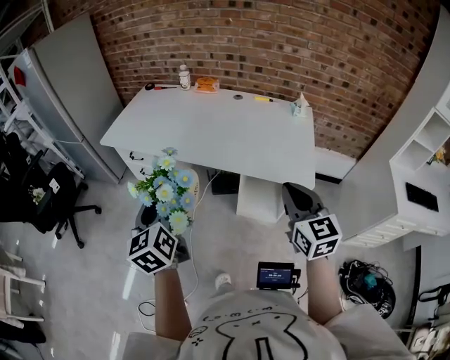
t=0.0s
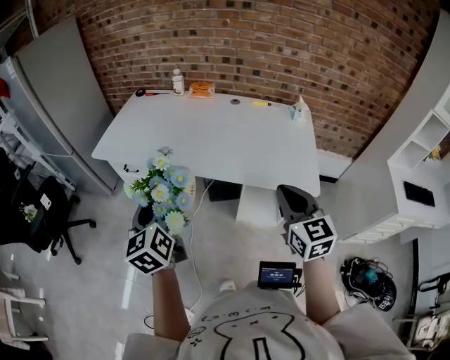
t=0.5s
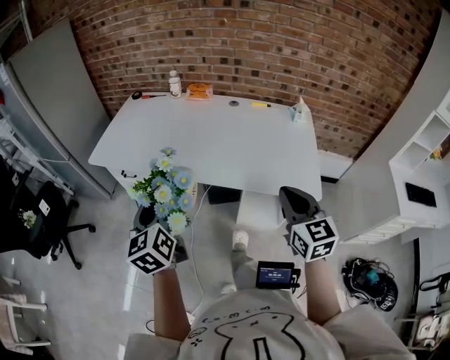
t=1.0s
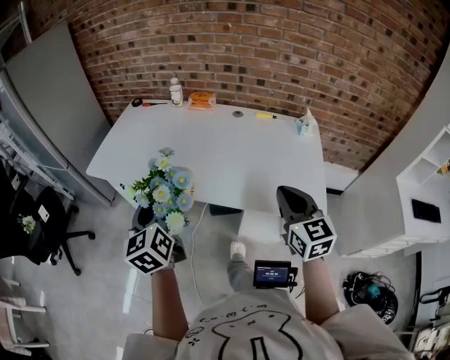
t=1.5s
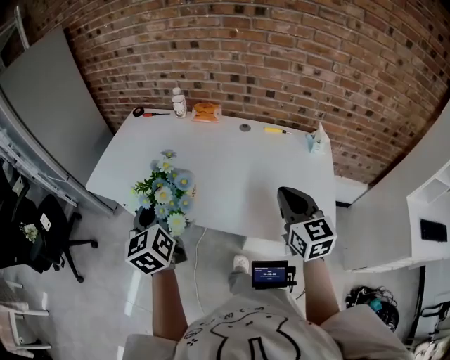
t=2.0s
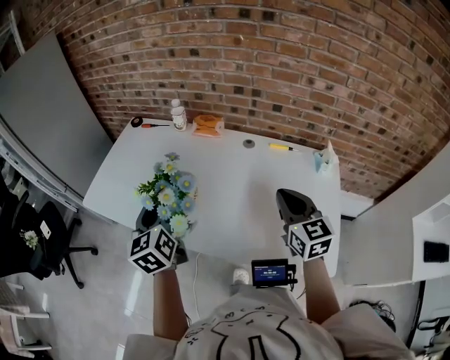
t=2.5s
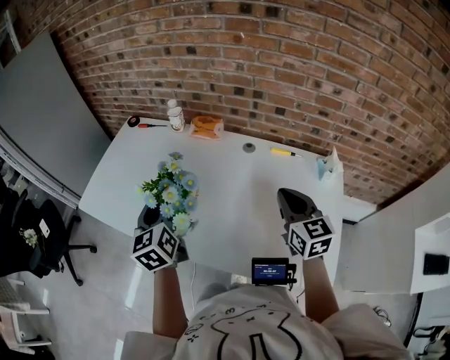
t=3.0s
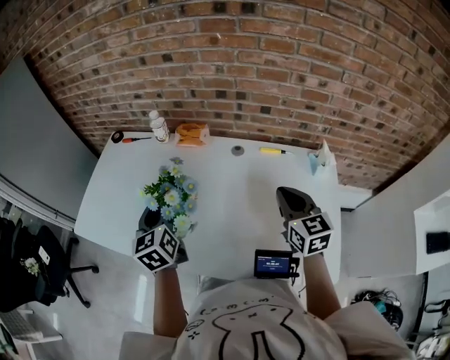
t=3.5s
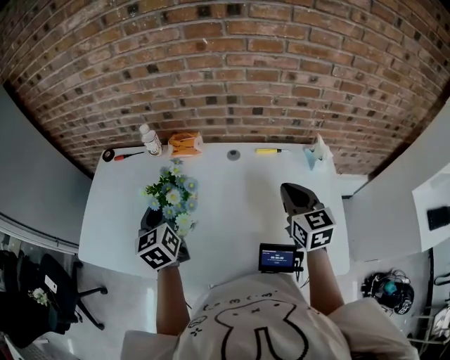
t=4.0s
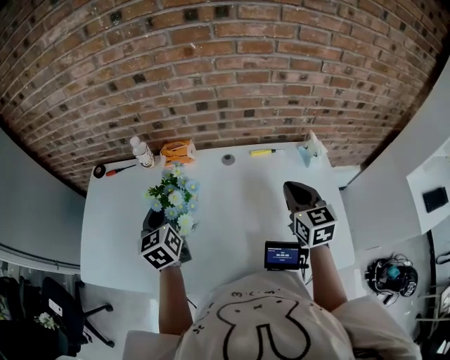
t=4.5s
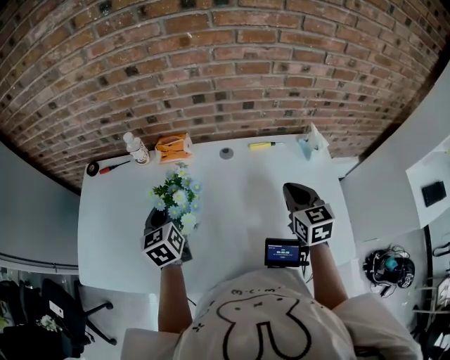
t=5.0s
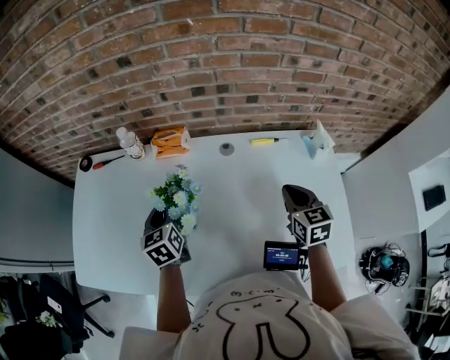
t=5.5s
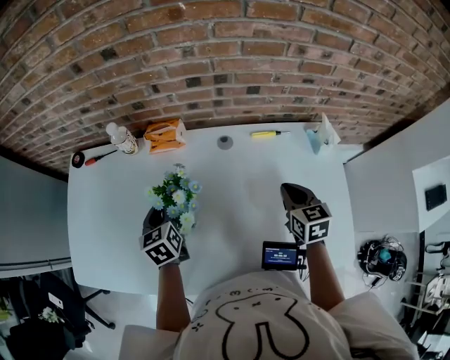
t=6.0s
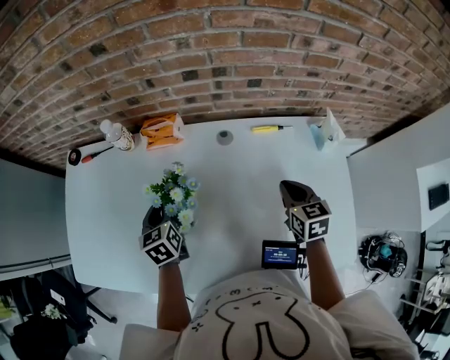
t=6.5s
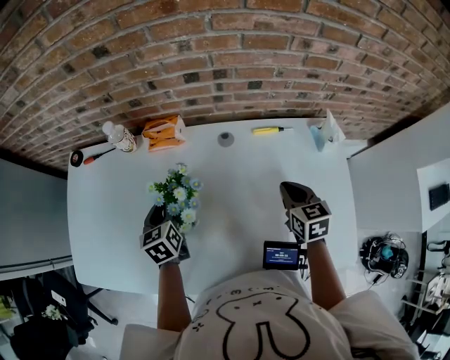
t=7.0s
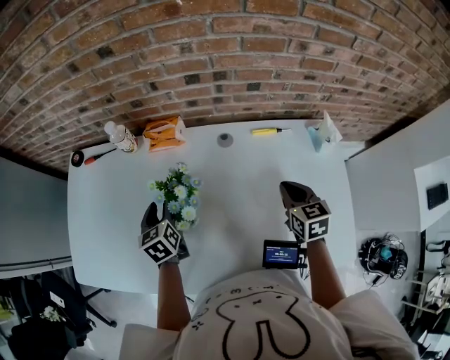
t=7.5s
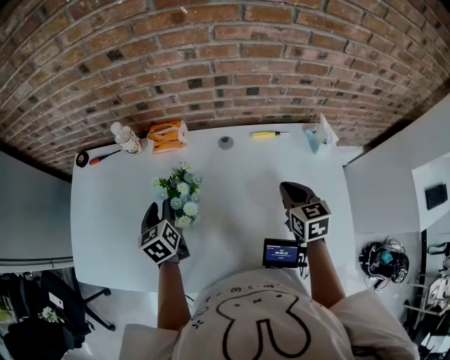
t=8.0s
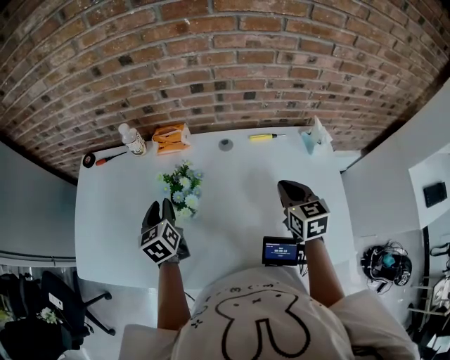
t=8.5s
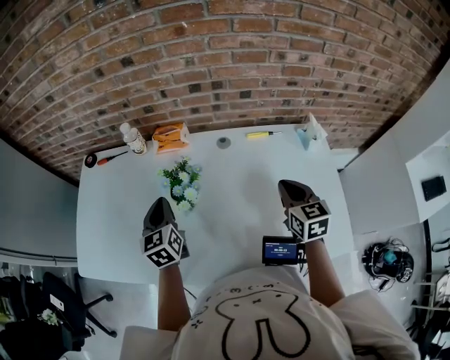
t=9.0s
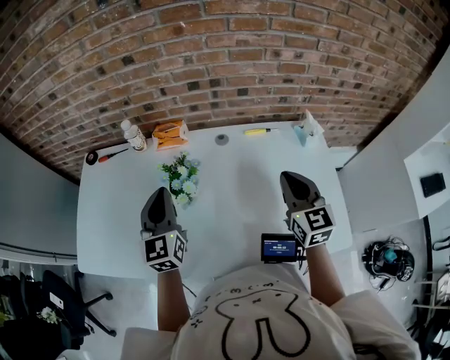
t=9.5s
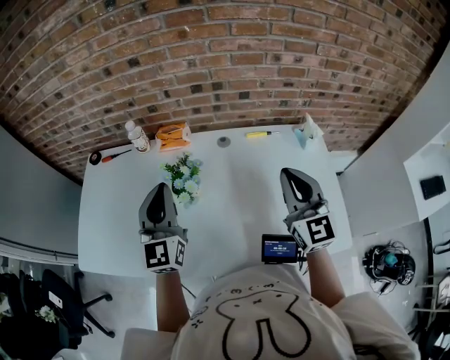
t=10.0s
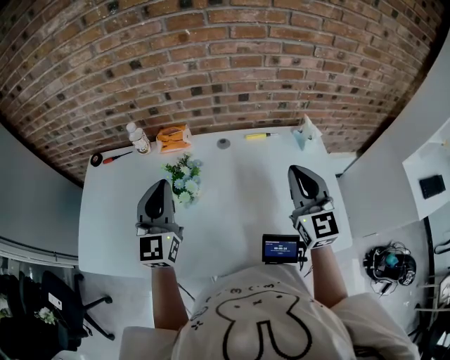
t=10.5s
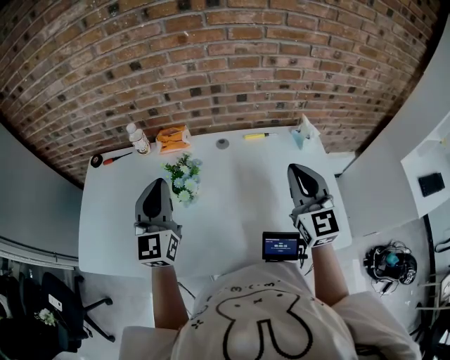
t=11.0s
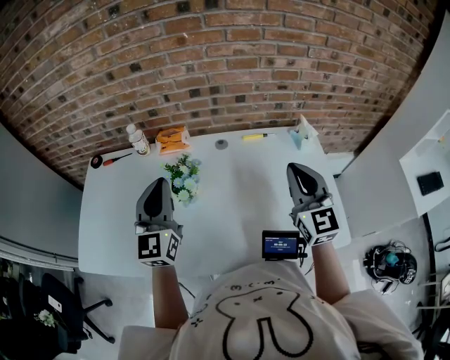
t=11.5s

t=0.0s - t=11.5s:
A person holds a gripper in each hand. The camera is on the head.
t=0.0s - t=2.0s: The two grippers go about 30 cm forward.
t=2.0s - t=4.0s: The two grippers go some 25 cm forward.
t=4.0s - t=6.0s: Both grippers move downward and forward, about 15 cm.
t=6.0s - t=7.5s: The left gripper opens its fingers.
t=7.5s - t=9.5s: Both grippers move upward and backward, some 15 cm. The right gripper changes its angle by some 30 degrees. The left gripper tilts its fingers about 30 degrees upward, and closes its fingers.
t=9.5s - t=11.5s: The grippers both shift upward by roughly 5 cm.

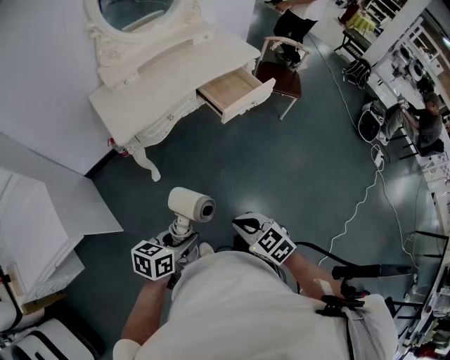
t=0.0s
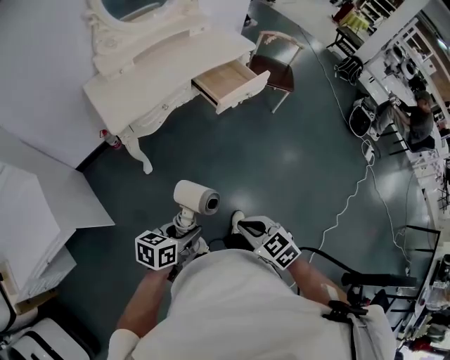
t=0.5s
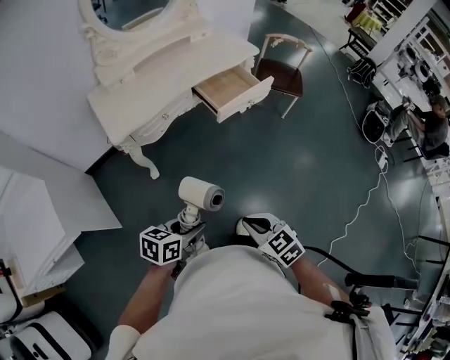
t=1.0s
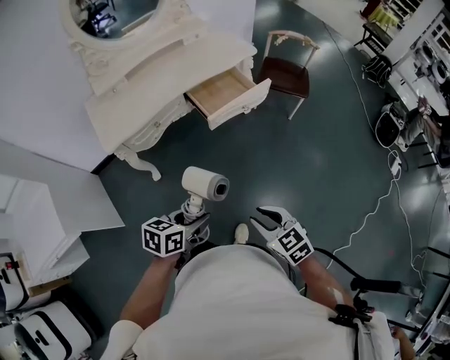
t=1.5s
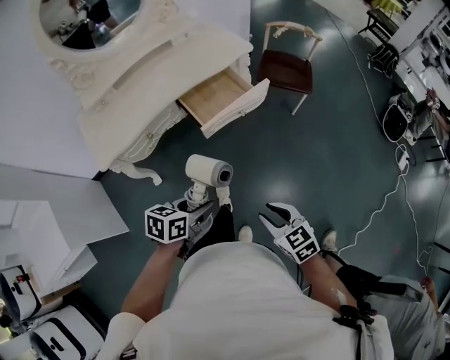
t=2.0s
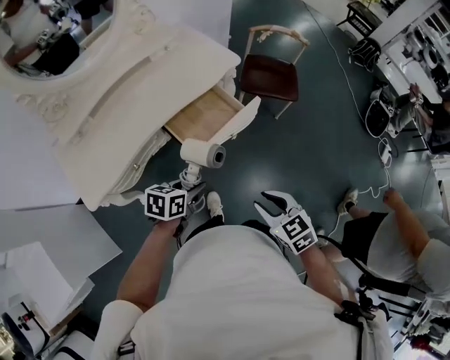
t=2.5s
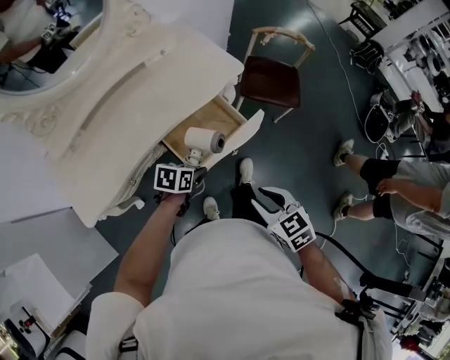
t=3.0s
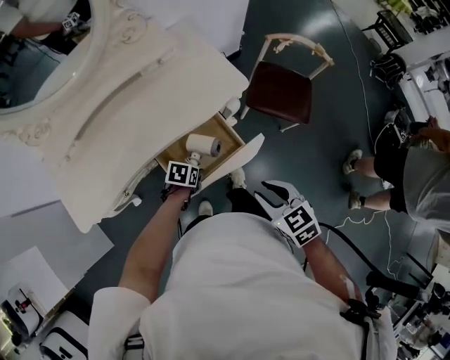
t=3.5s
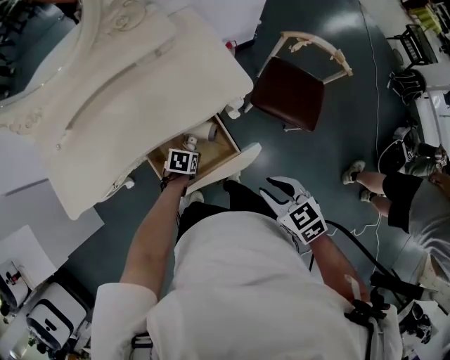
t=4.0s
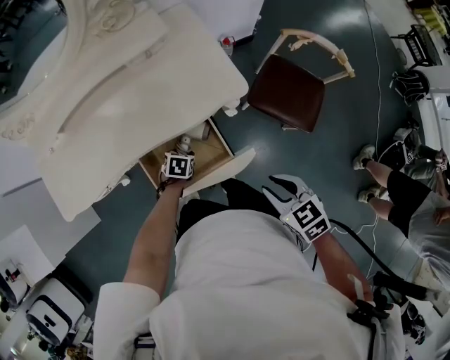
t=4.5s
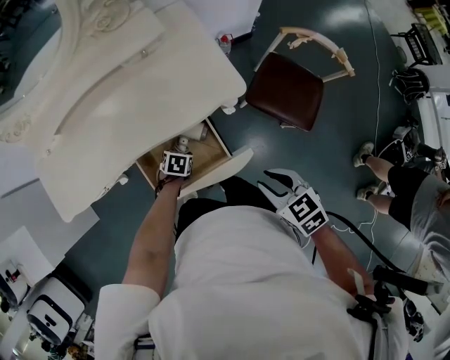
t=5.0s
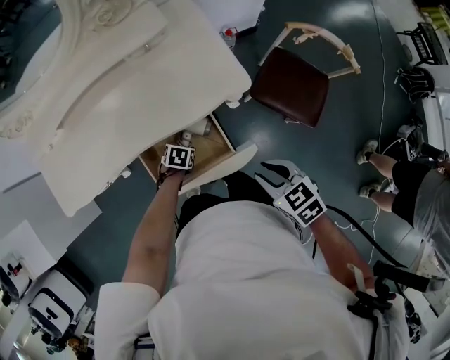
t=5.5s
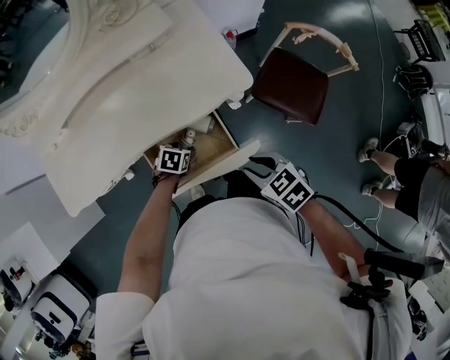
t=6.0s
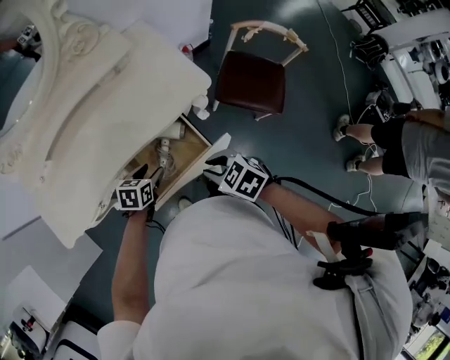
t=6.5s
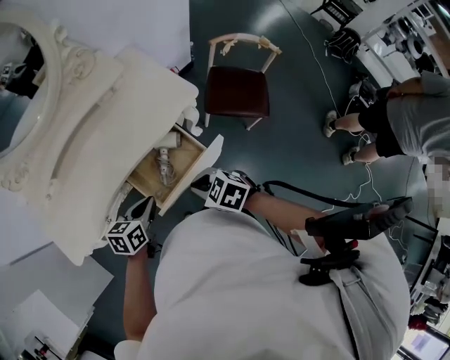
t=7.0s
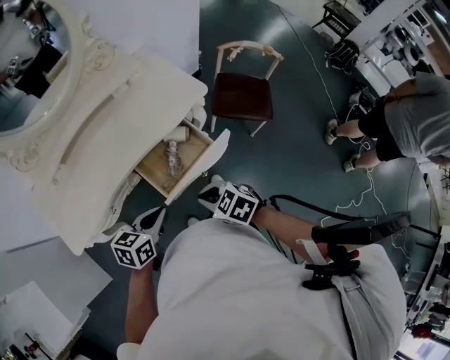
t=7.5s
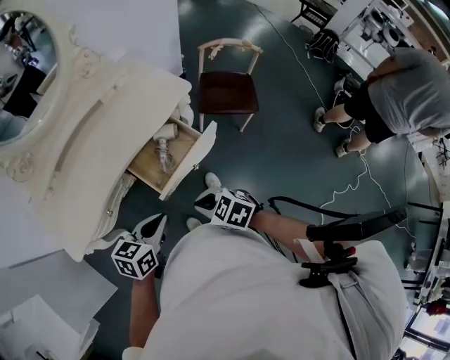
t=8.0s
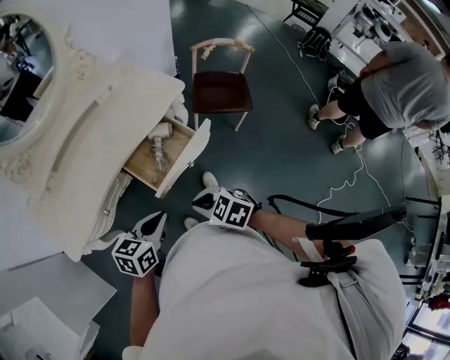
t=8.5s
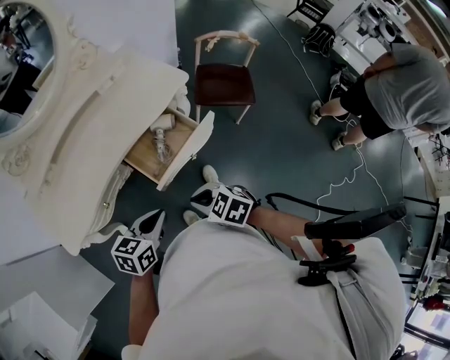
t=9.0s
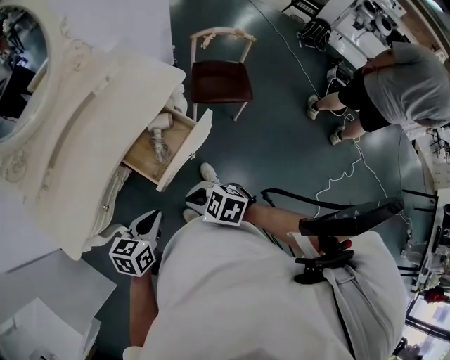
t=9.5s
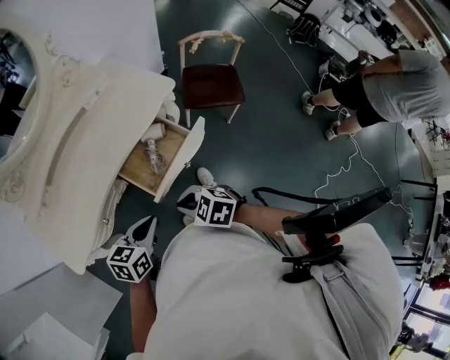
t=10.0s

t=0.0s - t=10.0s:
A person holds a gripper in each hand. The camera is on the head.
t=0.0s - t=2.0s: The right gripper travels to the right and forward by some 35 cm, and opens its fingers, while the left gripper heads forward and to the right, covering some 35 cm.
t=2.0s - t=4.0s: The two grippers travel together, forward, roughly 60 cm. The left gripper goes approximately 25 cm downward, and tilts its fingers about 30 degrees downward.
t=4.0s - t=6.0s: The right gripper changes place by approximately 10 cm.
t=6.0s - t=8.0s: The right gripper moves backward and to the left, about 35 cm, and closes up; the left gripper goes approximately 40 cm backward and upward, angles its fingers upward, by approximately 40 degrees, and closes up.
t=8.0s - t=10.0s: There are only small adjustments of the grippers.

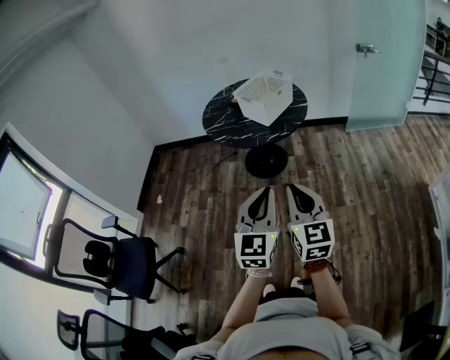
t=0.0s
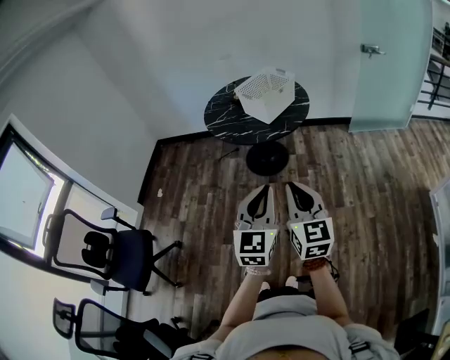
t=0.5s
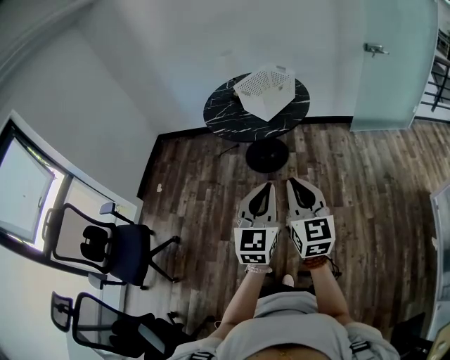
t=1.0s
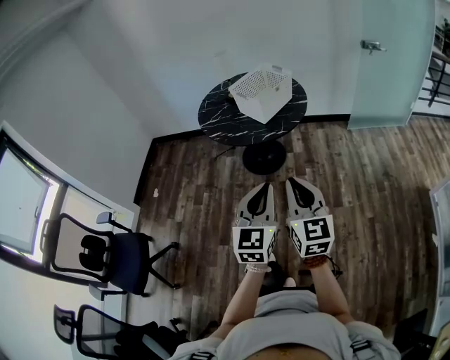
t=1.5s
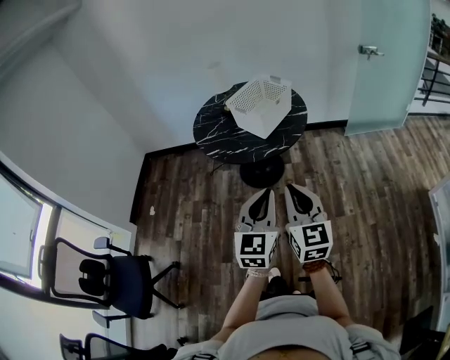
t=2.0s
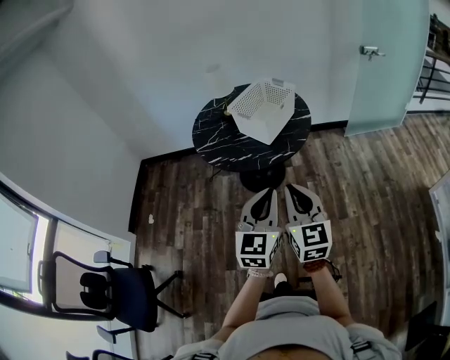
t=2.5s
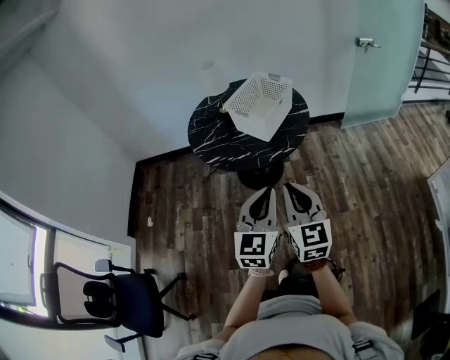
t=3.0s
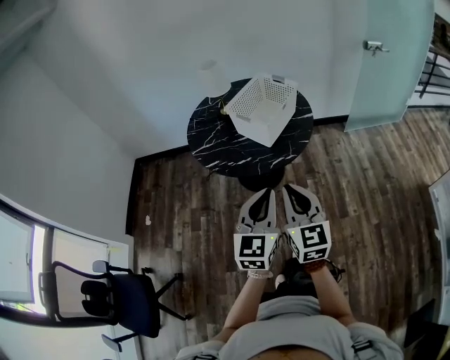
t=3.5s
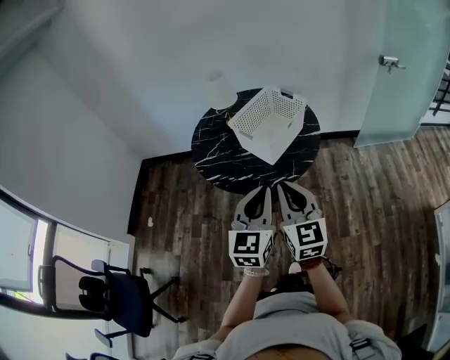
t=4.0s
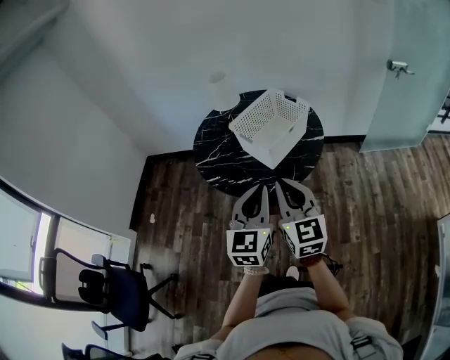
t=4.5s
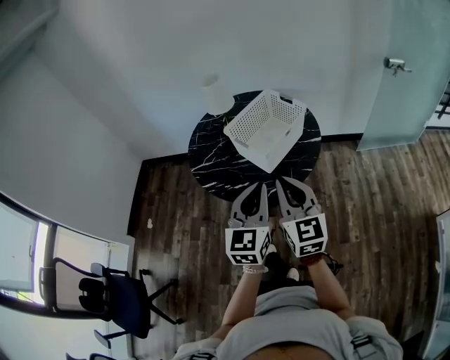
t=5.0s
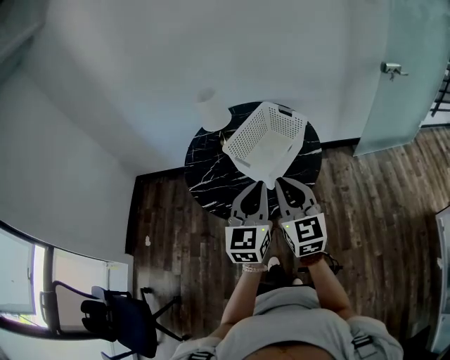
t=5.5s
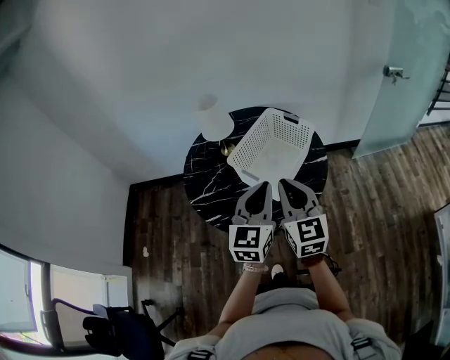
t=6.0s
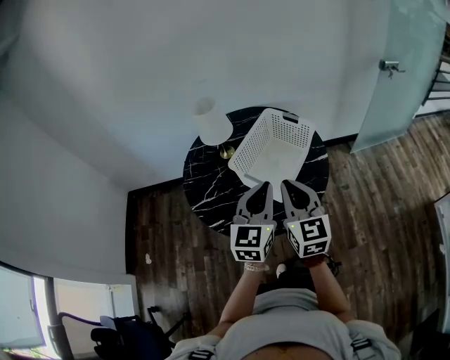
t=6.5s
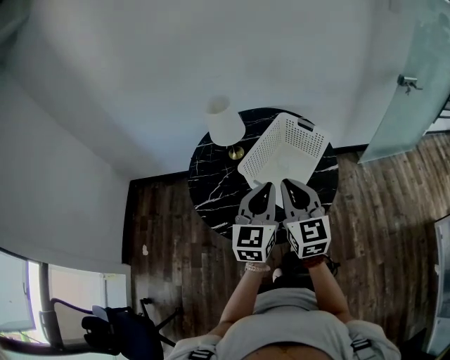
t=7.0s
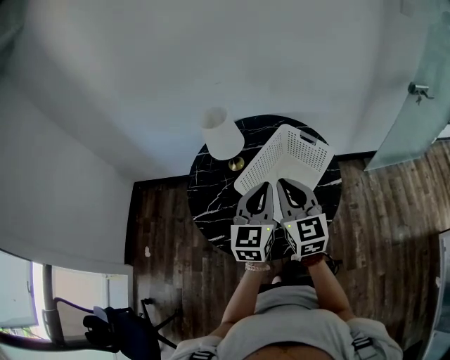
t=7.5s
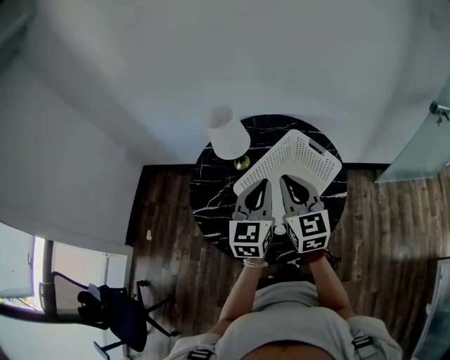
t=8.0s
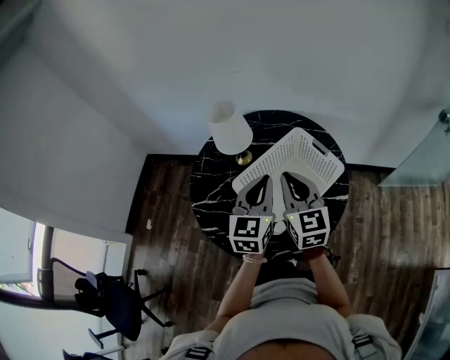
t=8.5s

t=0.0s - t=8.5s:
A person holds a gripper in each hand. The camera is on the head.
t=0.0s - t=2.0s: The grippers both shift forward by some 15 cm.
t=2.0s - t=4.0s: The grippers both shift forward by roughly 20 cm.
t=4.0s - t=6.5s: Both grippers travel together forward, approximately 25 cm.
t=6.5s - t=8.5s: Both grippers move forward, approximately 20 cm.
